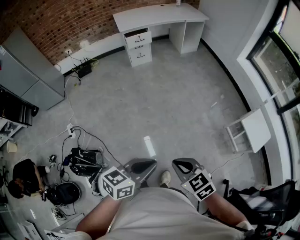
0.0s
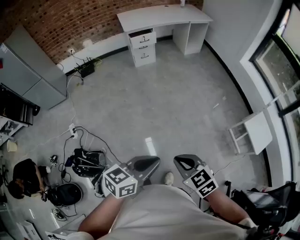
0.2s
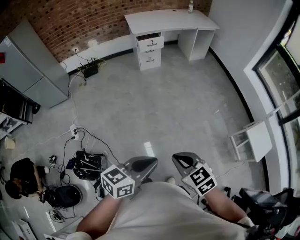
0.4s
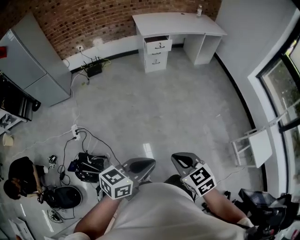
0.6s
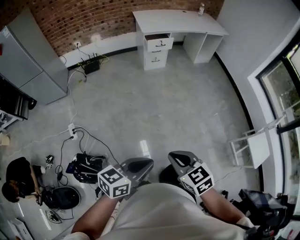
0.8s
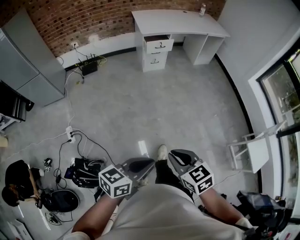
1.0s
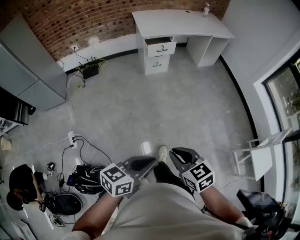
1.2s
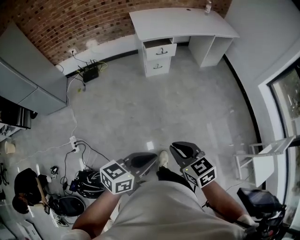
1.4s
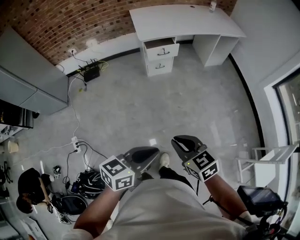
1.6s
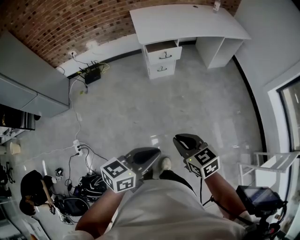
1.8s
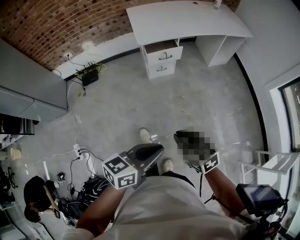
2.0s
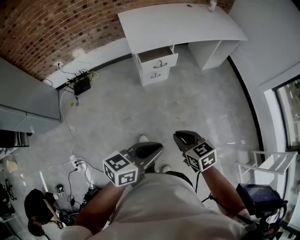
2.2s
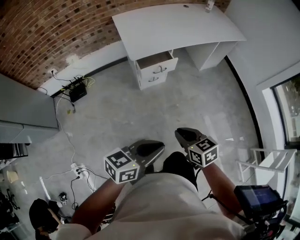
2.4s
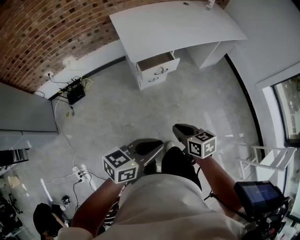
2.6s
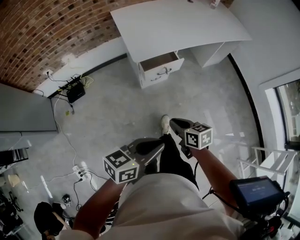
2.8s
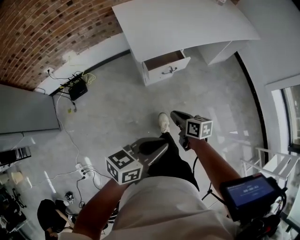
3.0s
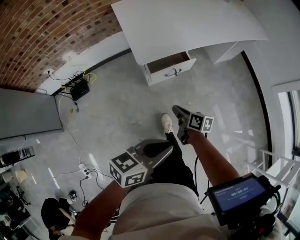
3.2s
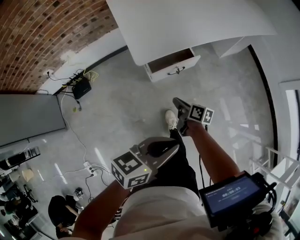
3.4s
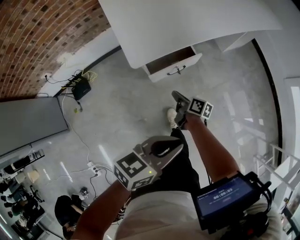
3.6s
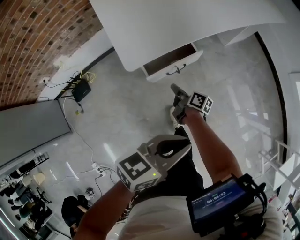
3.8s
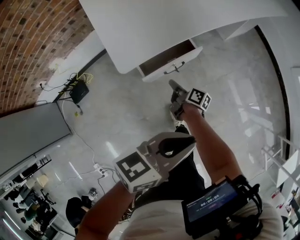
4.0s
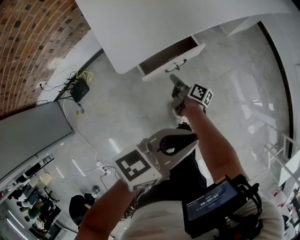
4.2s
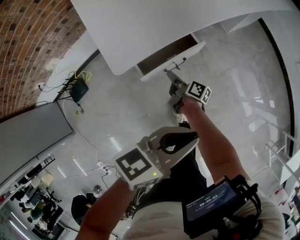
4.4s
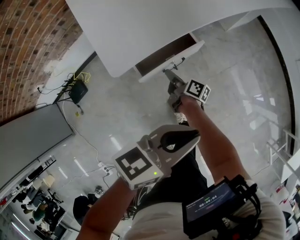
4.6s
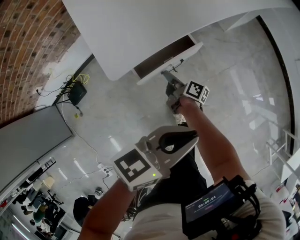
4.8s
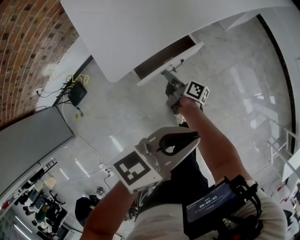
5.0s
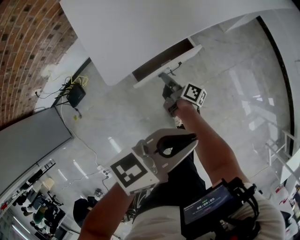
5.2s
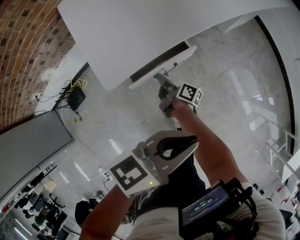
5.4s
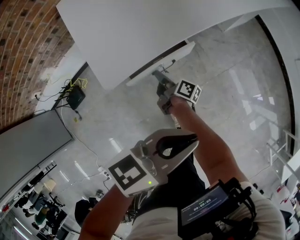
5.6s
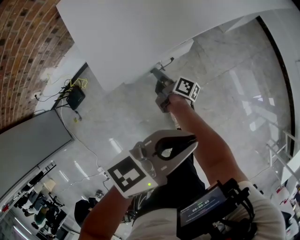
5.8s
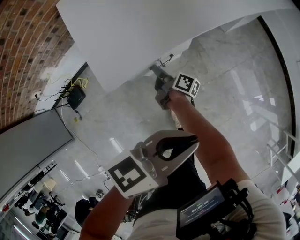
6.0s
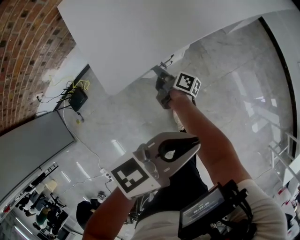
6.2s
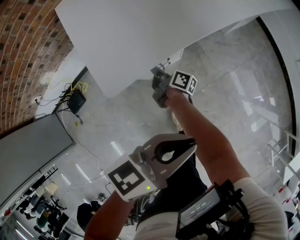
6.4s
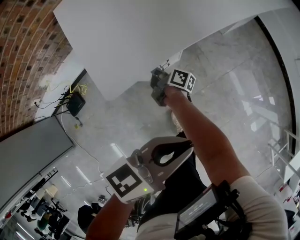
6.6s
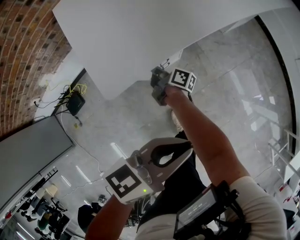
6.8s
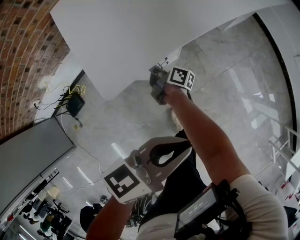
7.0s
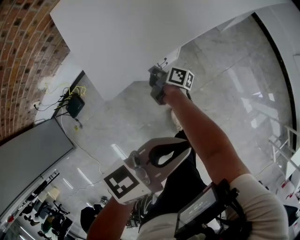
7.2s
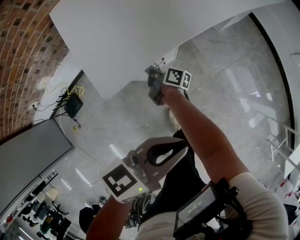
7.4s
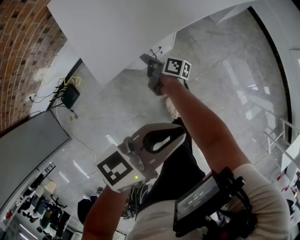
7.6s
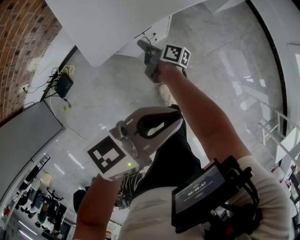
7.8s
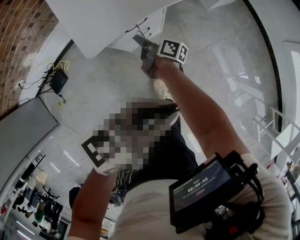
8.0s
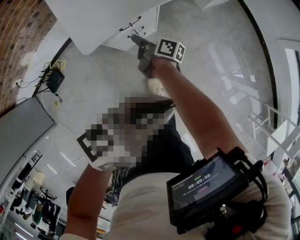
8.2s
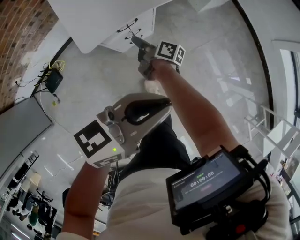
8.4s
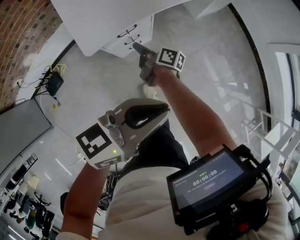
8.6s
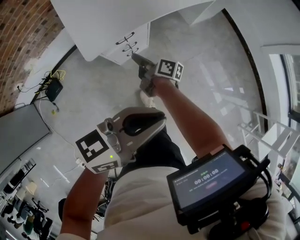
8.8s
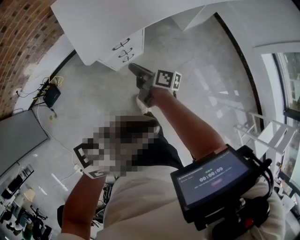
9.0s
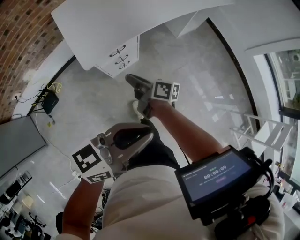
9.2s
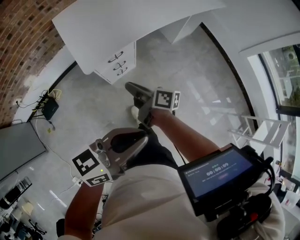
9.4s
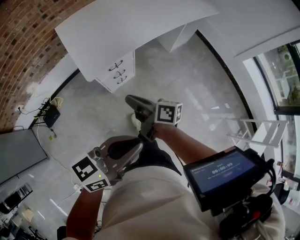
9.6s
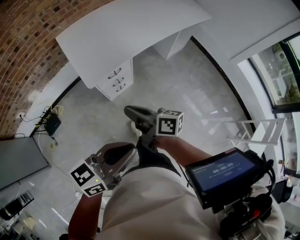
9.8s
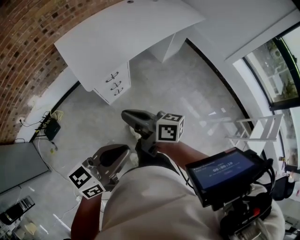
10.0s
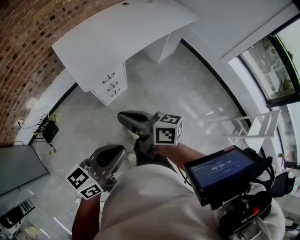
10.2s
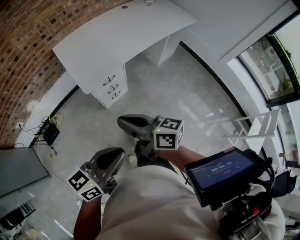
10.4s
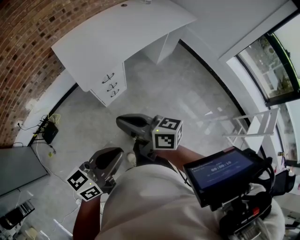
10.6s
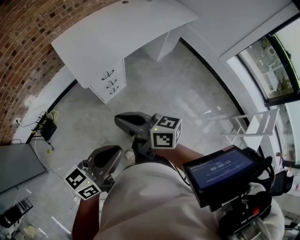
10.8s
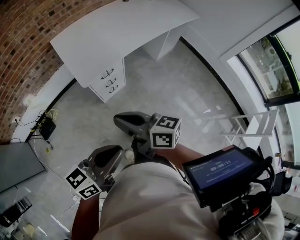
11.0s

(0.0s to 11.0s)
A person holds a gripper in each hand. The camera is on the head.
0.0s - 1.6s: The two grippers travel together, forward, approximately 50 cm.
1.6s - 3.2s: The two grippers travel together, forward, some 50 cm. The right gripper moves downward, about 25 cm, and rotates around the line of its fingers by roughly 60 degrees, clockwise from behind.
3.2s - 4.8s: Both grippers travel together forward and downward, approximately 30 cm. The right gripper rotates approximately 40 degrees.
4.8s - 6.2s: The right gripper moves forward, some 5 cm.
6.2s - 7.8s: The grippers make only small movements.
7.8s - 9.4s: The two grippers go about 30 cm upward and backward.
9.4s - 11.0s: The right gripper is displaced upward and backward by about 25 cm, and turns by some 30 degrees. Meanwhile the left gripper moves backward and to the left, roughly 10 cm.

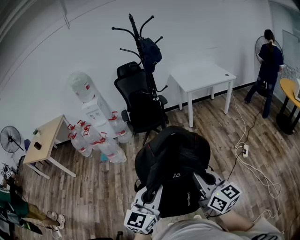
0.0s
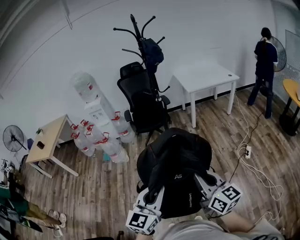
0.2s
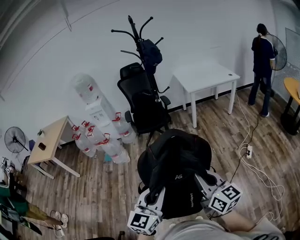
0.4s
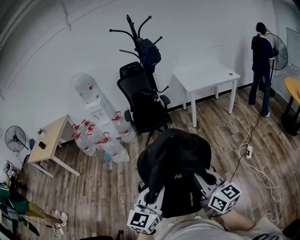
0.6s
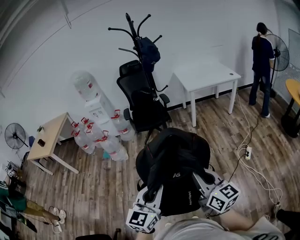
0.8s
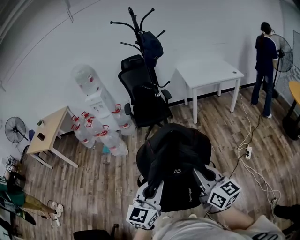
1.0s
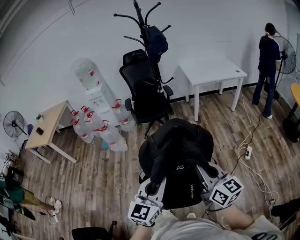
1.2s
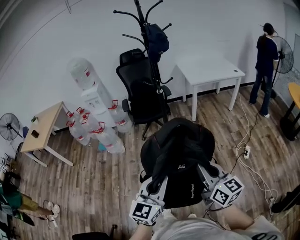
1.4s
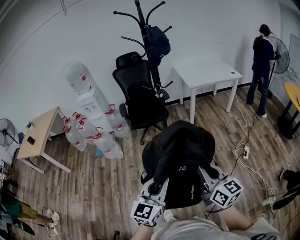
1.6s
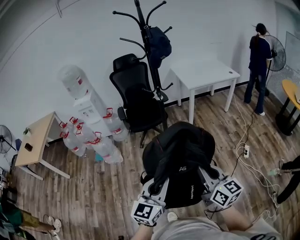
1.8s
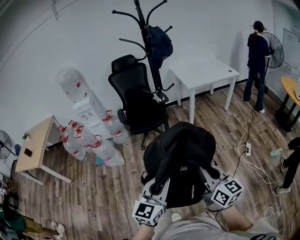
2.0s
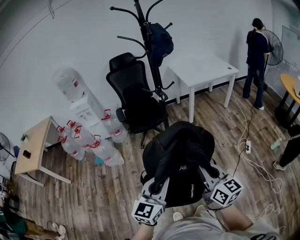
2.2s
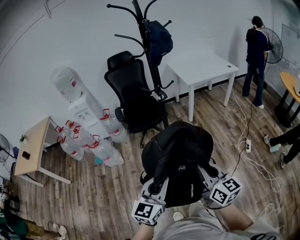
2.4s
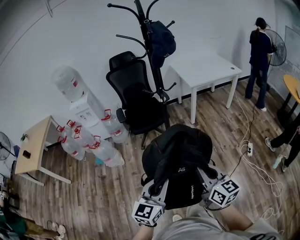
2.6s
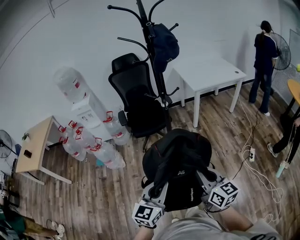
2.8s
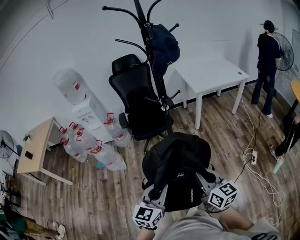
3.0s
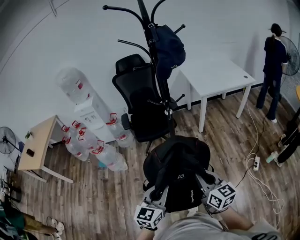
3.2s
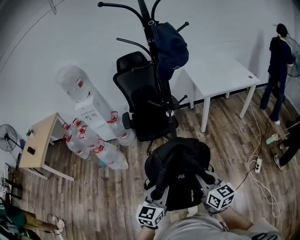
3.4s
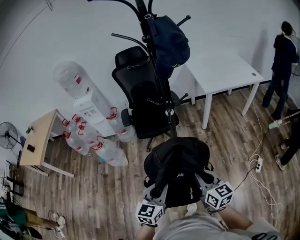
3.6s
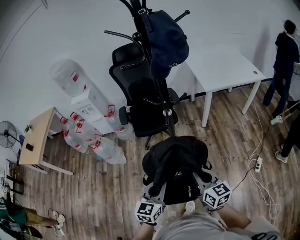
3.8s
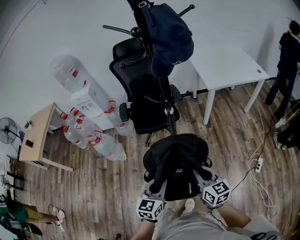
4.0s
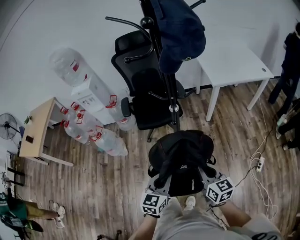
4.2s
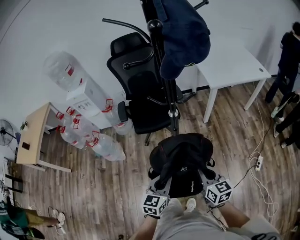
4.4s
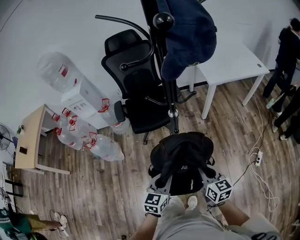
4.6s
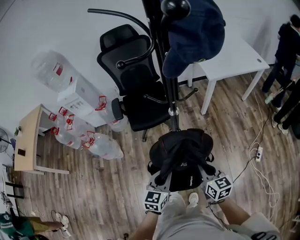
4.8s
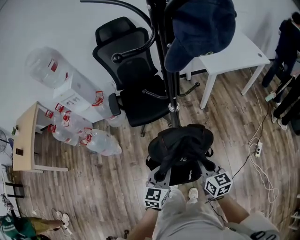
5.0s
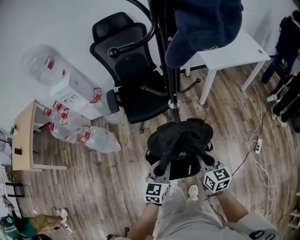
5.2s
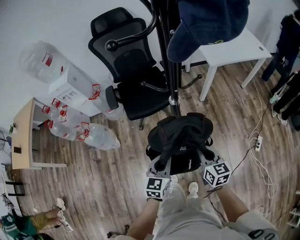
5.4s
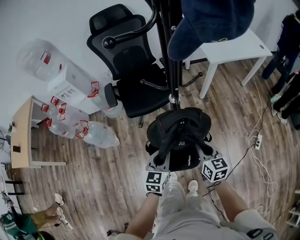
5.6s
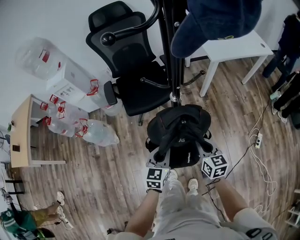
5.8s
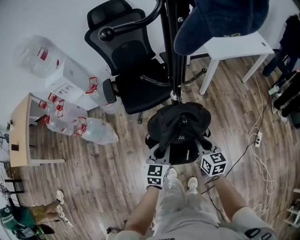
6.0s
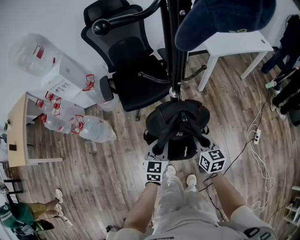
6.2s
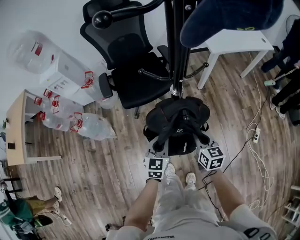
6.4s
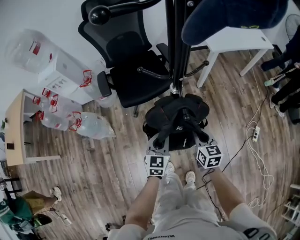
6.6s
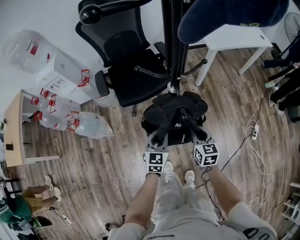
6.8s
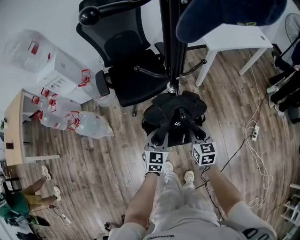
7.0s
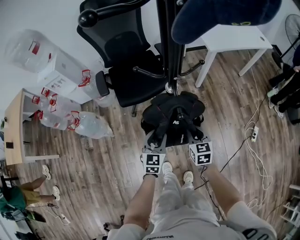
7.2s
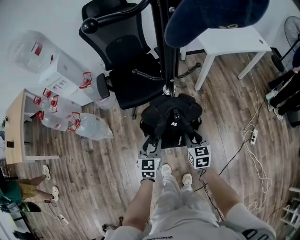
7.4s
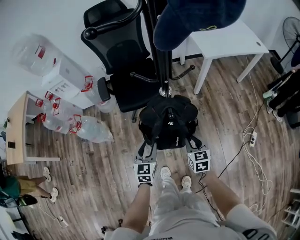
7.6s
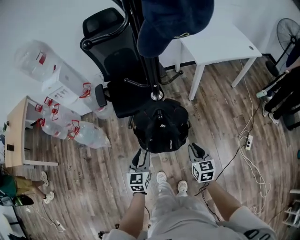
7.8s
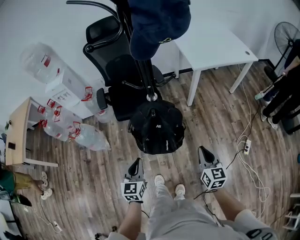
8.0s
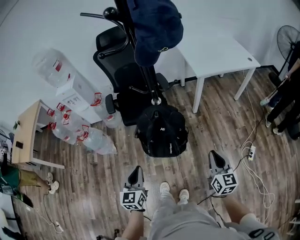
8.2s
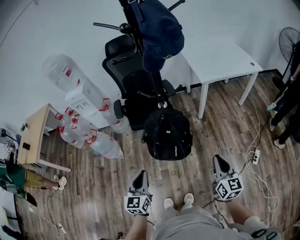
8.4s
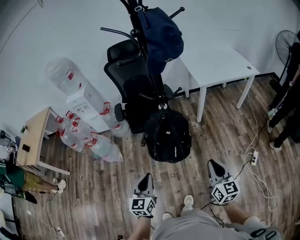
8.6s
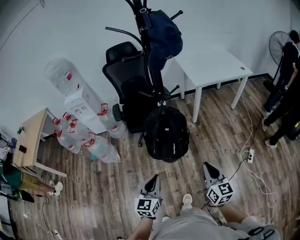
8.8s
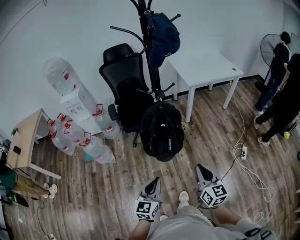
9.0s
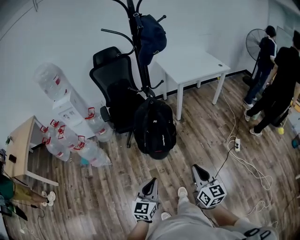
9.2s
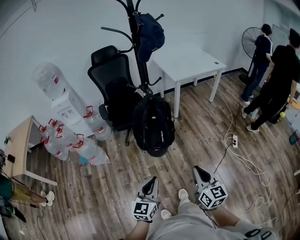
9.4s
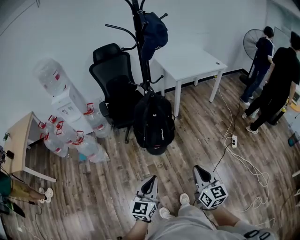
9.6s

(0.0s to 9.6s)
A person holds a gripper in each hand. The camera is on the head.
0.0s - 1.6s: Both grippers move forward, about 15 cm.
1.6s - 3.2s: The grippers both shift forward by roughly 20 cm.
3.2s - 4.8s: Both grippers move forward and downward, some 25 cm.
4.8s - 6.4s: Both grippers move forward and downward, about 15 cm.
6.4s - 8.0s: The right gripper moves to the right, backward and upward, some 20 cm; the left gripper heads backward and upward, covering about 15 cm, and opens and closes again.
8.0s - 9.6s: Both grippers travel together backward, roughly 35 cm. The left gripper turns by some 20 degrees.

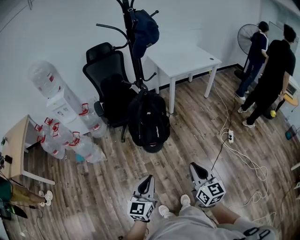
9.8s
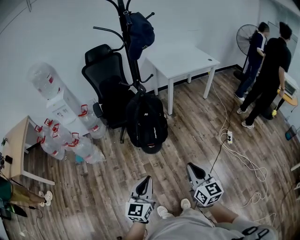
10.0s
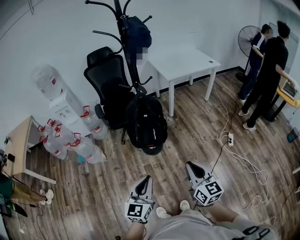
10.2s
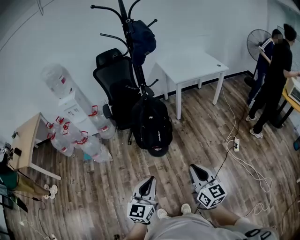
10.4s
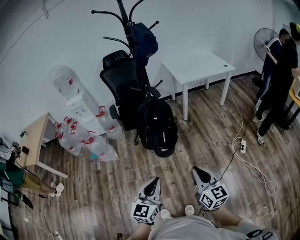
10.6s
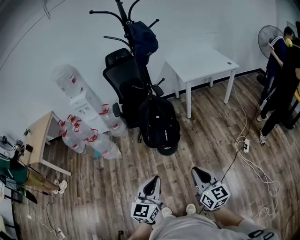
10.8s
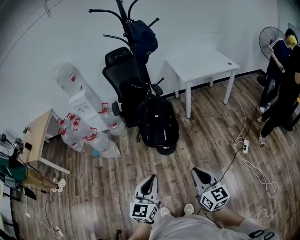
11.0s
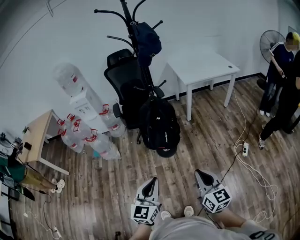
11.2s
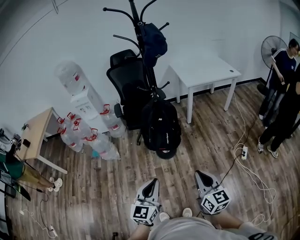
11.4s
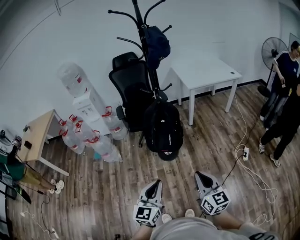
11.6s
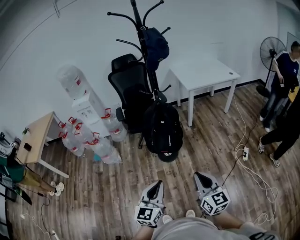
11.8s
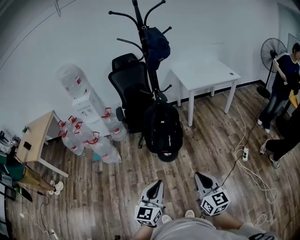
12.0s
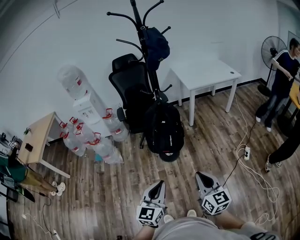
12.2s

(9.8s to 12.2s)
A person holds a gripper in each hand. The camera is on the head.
9.8s - 11.0s: The right gripper moves to the right, about 10 cm. The left gripper goes about 10 cm to the right and upward.
11.0s - 12.2s: There are only small adjustments of the grippers.

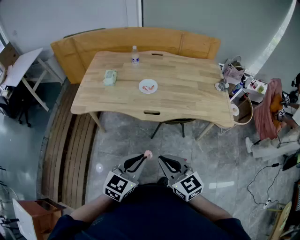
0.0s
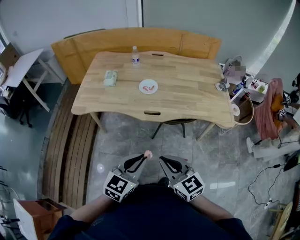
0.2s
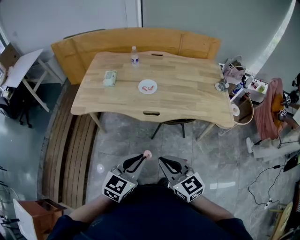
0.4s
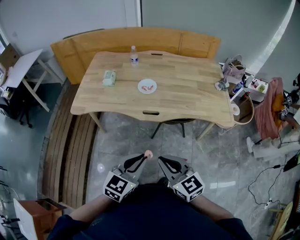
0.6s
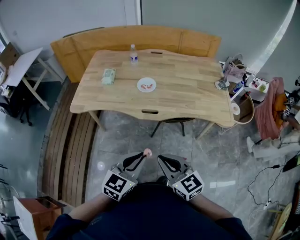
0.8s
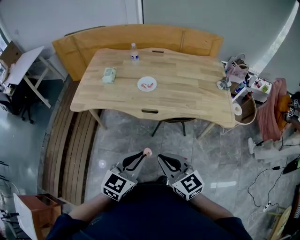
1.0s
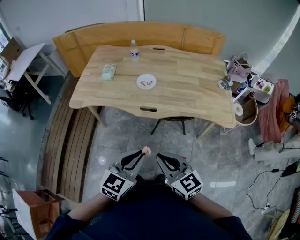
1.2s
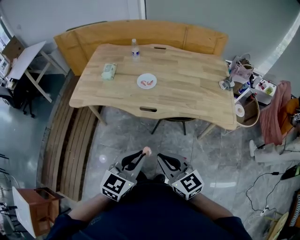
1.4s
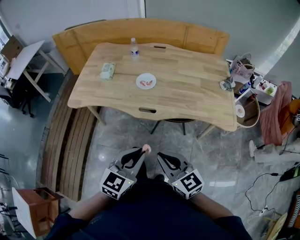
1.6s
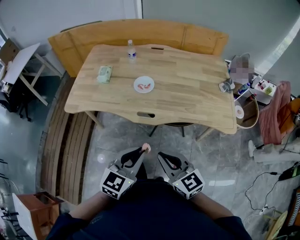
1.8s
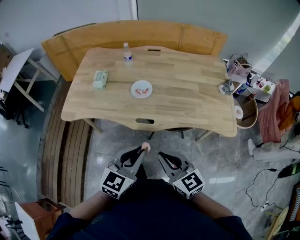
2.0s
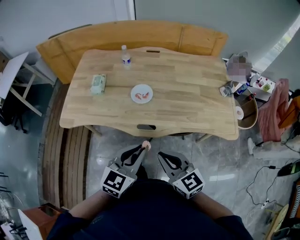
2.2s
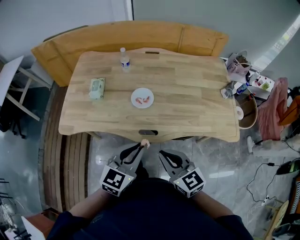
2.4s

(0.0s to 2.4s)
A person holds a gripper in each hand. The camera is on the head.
0.0s - 1.2s: The left gripper heads to the right, covering about 5 cm. Meanwhile the right gripper ends up about 5 cm from where it was.
1.2s - 2.4s: Both grippers travel together forward, some 25 cm.
